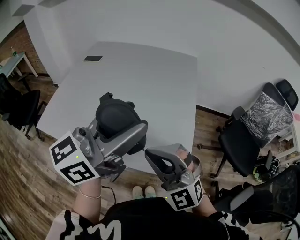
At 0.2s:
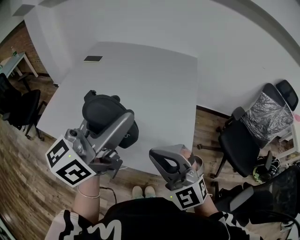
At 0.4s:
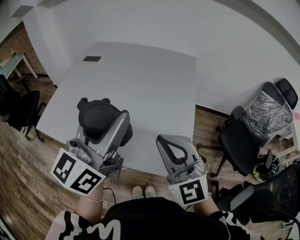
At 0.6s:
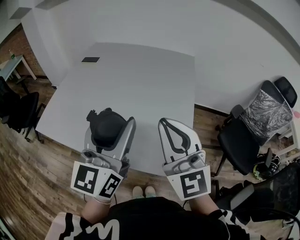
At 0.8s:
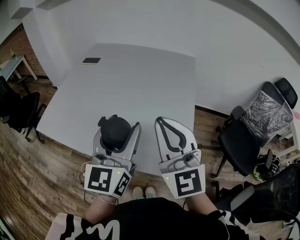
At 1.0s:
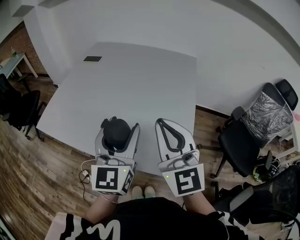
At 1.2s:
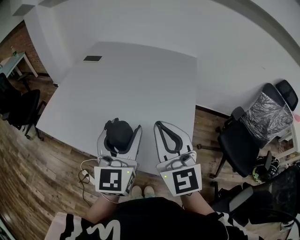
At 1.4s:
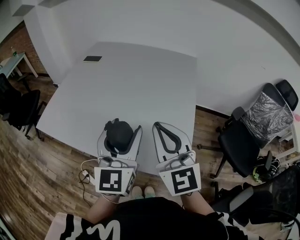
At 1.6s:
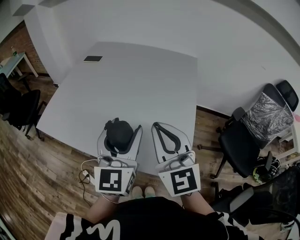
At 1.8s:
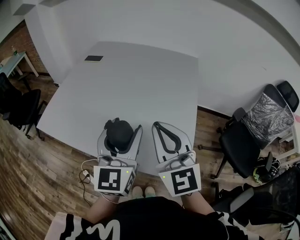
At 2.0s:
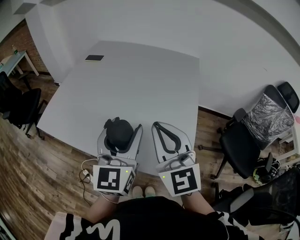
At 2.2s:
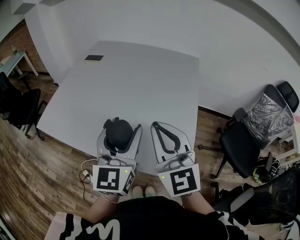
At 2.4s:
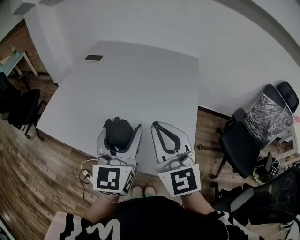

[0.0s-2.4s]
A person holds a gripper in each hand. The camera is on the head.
0.0s to 1.2s: The left gripper shifts approximately 10 cm downward, and swivels approximately 50 degrees, while the right gripper heads forward, covering about 5 cm, and rotates approximately 40 degrees.
1.2s to 2.4s: The grippers make only small movements.

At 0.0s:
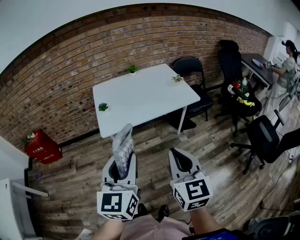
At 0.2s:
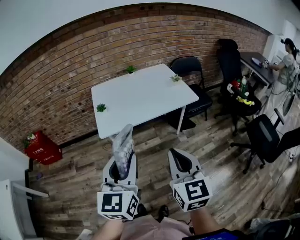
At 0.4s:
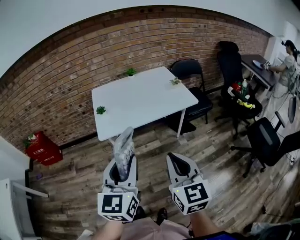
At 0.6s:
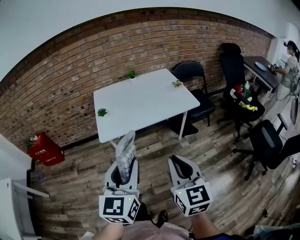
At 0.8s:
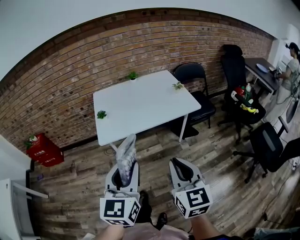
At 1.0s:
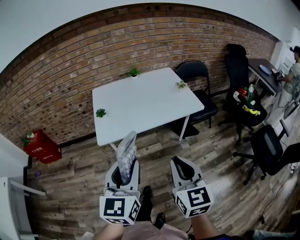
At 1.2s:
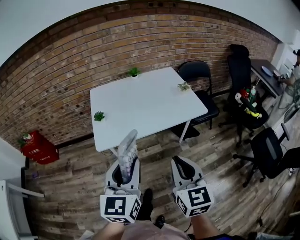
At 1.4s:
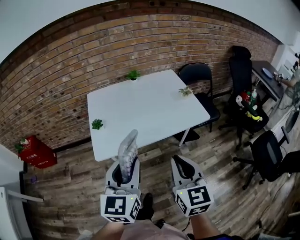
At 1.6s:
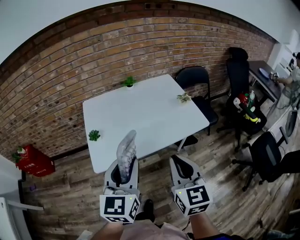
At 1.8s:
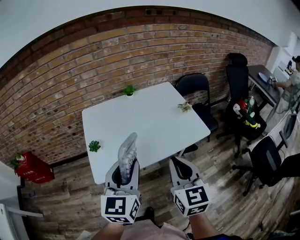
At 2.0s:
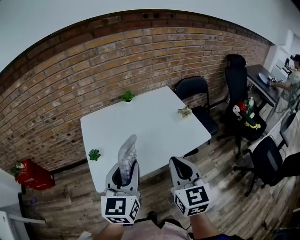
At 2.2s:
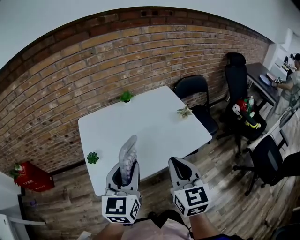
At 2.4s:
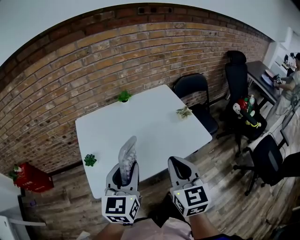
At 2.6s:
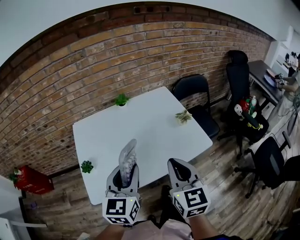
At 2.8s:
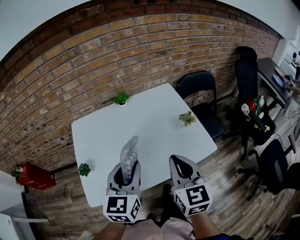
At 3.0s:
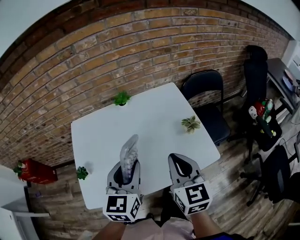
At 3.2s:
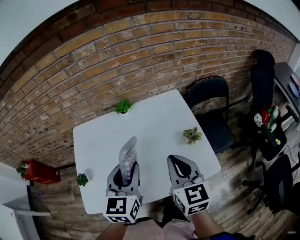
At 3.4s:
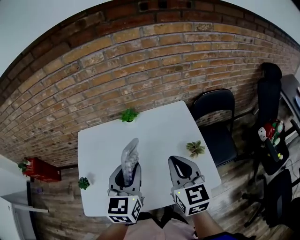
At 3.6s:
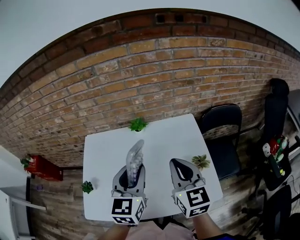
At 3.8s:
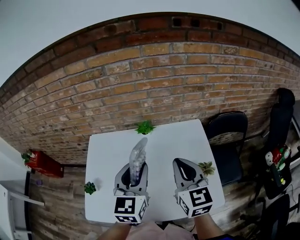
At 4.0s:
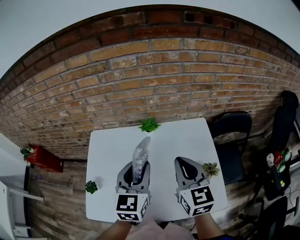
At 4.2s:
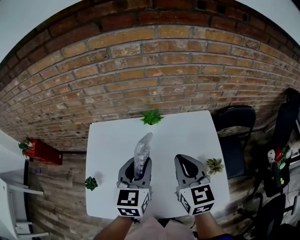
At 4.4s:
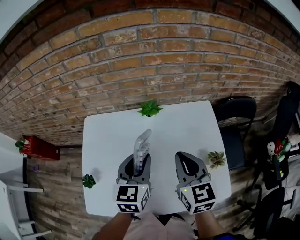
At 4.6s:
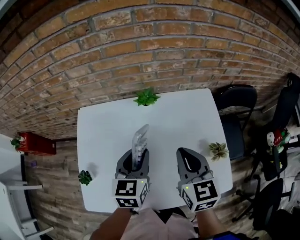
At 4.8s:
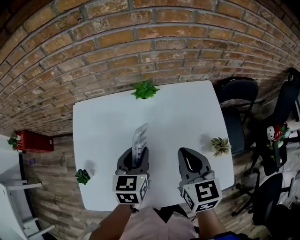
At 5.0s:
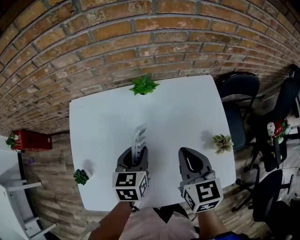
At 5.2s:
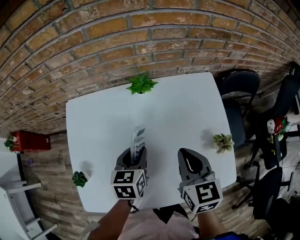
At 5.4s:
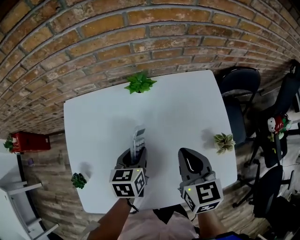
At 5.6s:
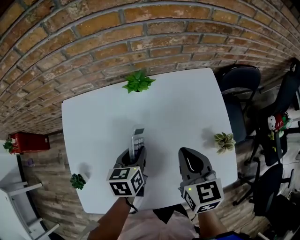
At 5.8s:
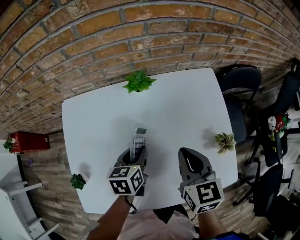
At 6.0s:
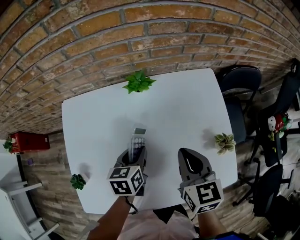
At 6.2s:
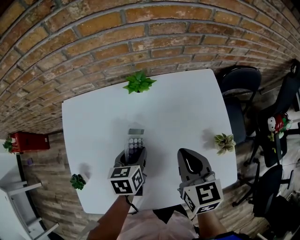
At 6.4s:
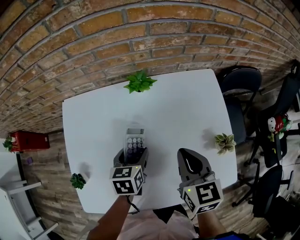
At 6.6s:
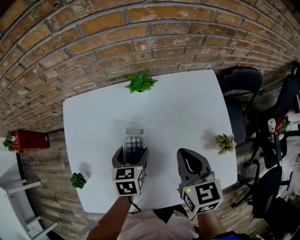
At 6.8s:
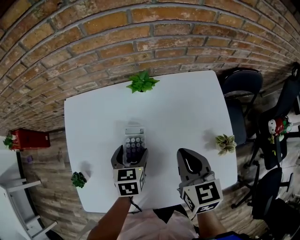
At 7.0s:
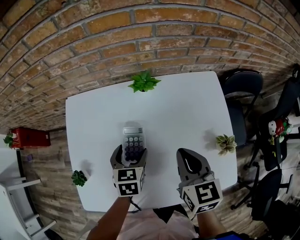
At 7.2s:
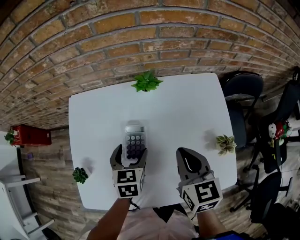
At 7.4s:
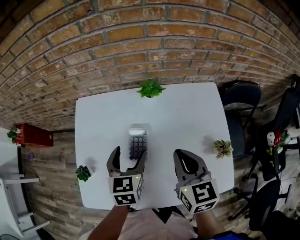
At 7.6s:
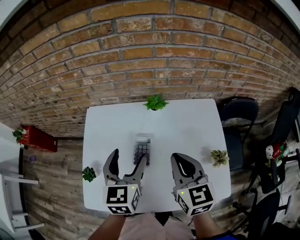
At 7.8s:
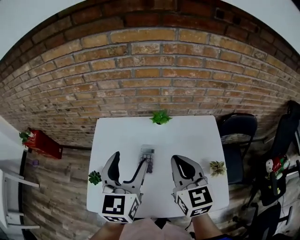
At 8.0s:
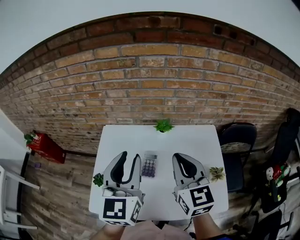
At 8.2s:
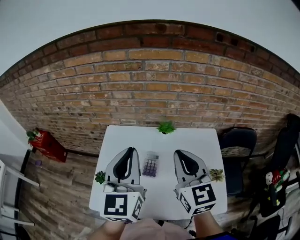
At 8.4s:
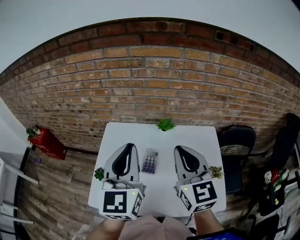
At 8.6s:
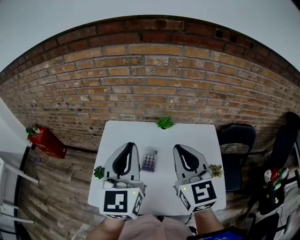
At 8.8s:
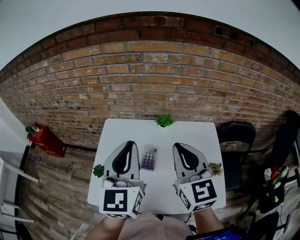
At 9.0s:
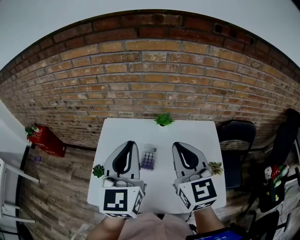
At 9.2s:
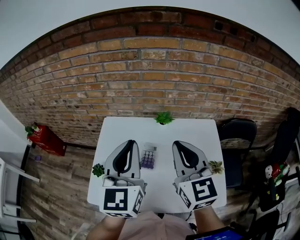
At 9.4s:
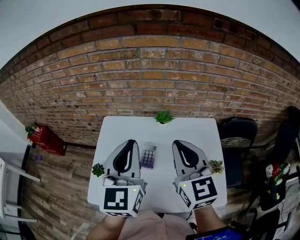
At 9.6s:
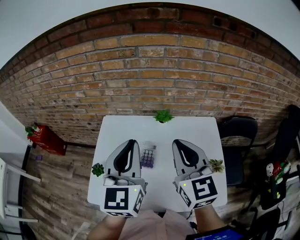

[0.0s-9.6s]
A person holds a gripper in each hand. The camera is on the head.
0.0s to 1.6s: Both grippers move forward, some 25 cm.
1.6s to 3.2s: The two grippers go some 30 cm forward.
3.2s to 4.8s: The left gripper heads downward and forward, covering some 15 cm. Meanwhile the right gripper moves forward, downward and to the left, some 15 cm.
4.8s to 6.4s: The left gripper travels downward by some 10 cm, and opens up.
6.4s to 8.0s: The right gripper goes approximately 20 cm upward, and rotates approximately 30 degrees. Meanwhile the left gripper goes some 35 cm upward, tips its fingers upward by some 40 degrees, and closes its fingers.
8.0s to 9.6s: The grippers move only a little.

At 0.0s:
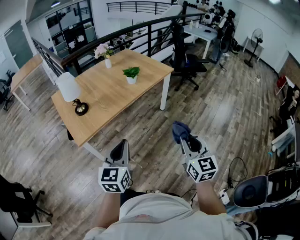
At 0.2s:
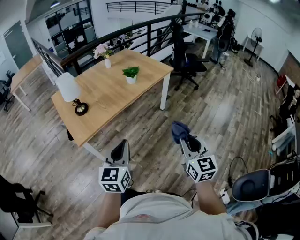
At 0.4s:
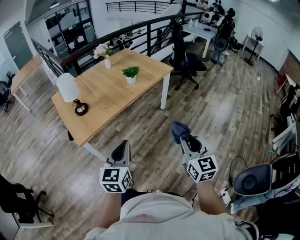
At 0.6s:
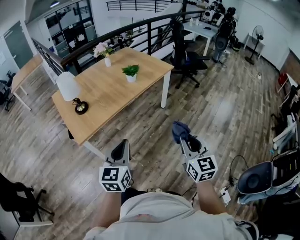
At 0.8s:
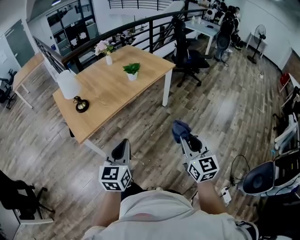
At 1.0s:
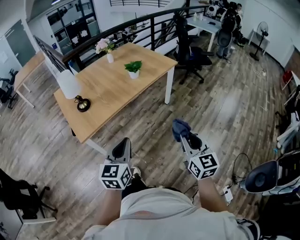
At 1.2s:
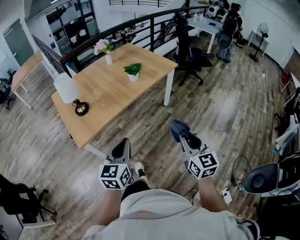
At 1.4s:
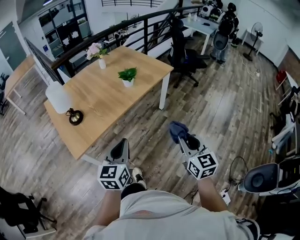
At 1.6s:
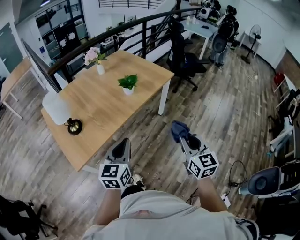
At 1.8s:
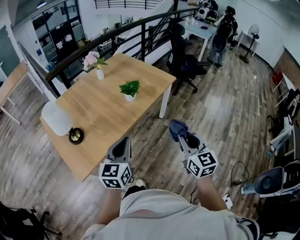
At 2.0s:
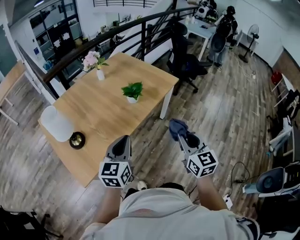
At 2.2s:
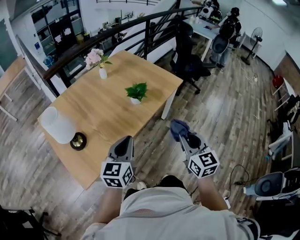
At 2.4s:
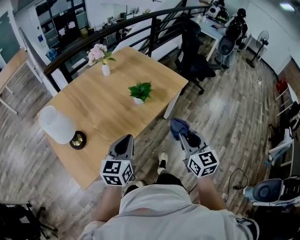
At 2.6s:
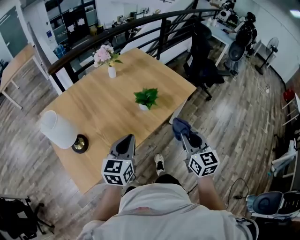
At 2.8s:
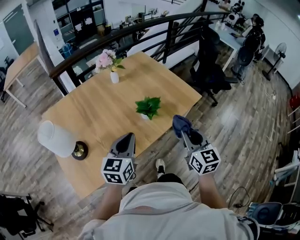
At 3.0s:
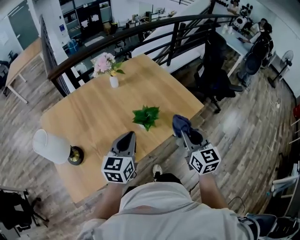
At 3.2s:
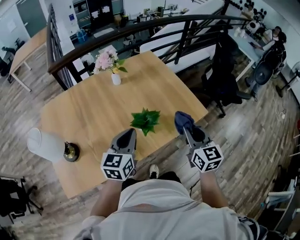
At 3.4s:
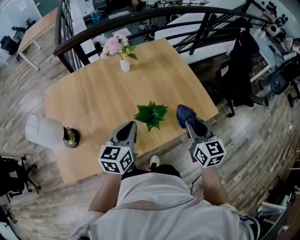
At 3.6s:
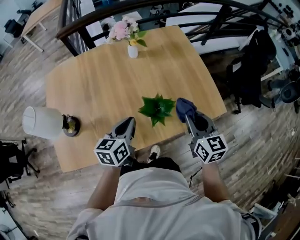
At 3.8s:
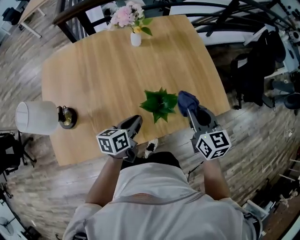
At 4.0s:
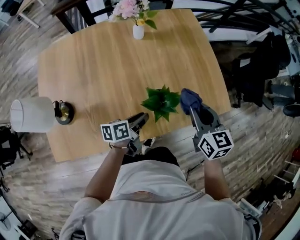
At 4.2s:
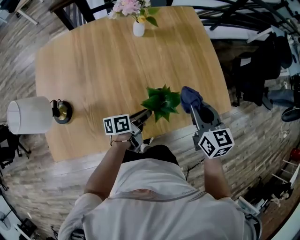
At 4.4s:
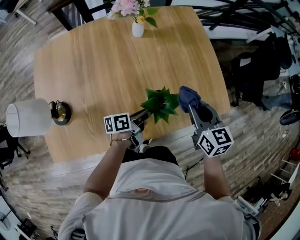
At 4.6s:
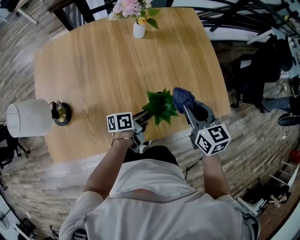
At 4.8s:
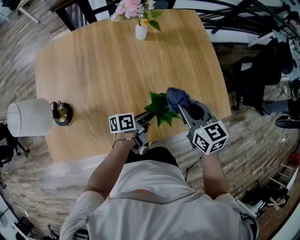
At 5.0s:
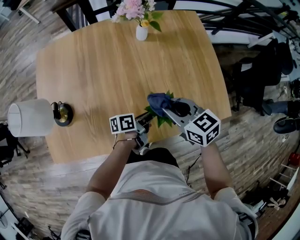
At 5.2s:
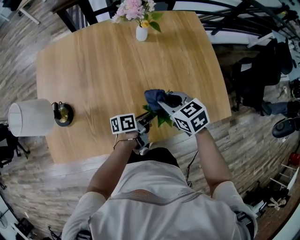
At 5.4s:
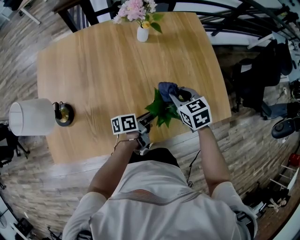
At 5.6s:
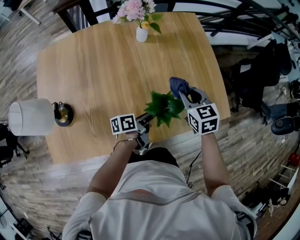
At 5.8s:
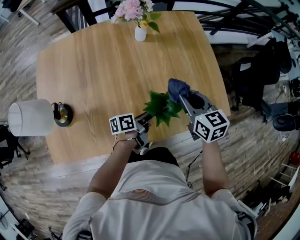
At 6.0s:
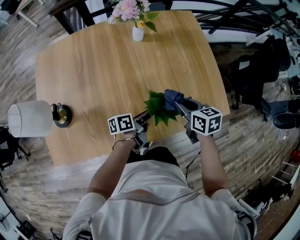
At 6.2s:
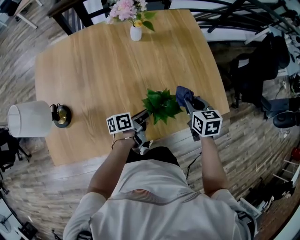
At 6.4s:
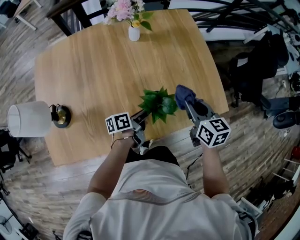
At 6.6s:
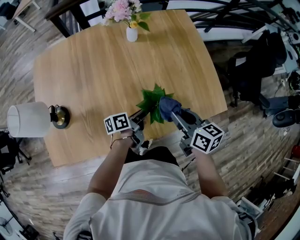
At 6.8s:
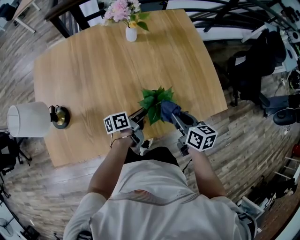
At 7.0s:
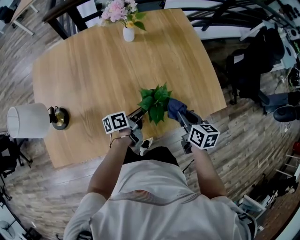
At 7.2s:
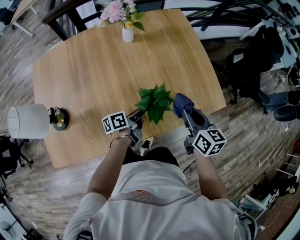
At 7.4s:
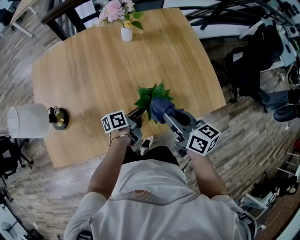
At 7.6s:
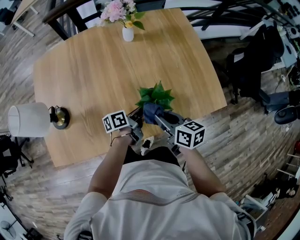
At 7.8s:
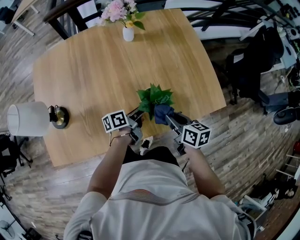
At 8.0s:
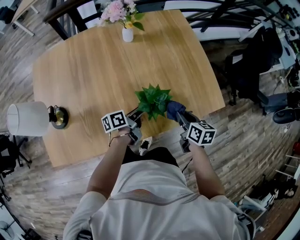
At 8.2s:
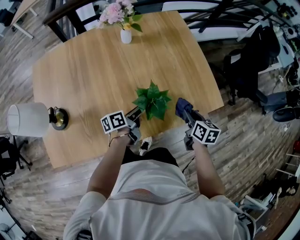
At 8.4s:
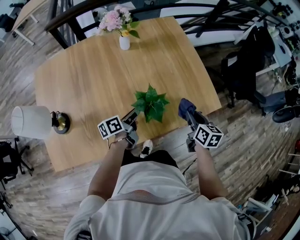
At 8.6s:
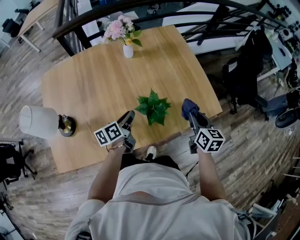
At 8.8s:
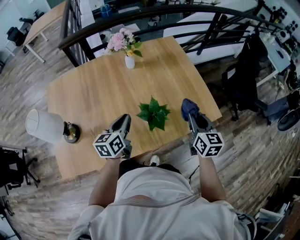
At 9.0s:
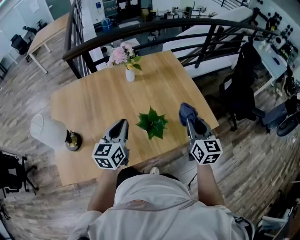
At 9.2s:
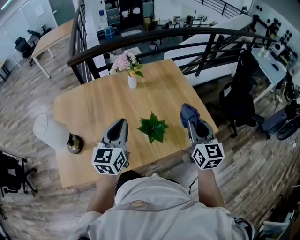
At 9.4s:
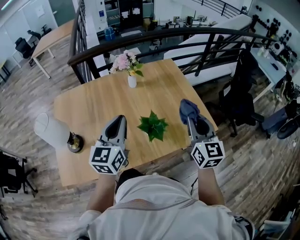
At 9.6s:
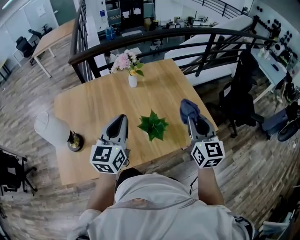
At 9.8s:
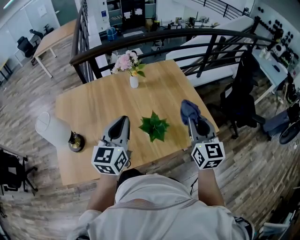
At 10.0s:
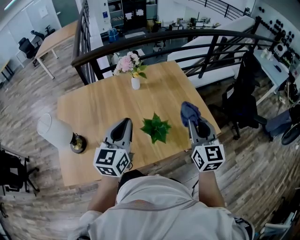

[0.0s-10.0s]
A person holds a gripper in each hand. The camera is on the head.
0.0s to 1.4s: Both grippers move forward, about 10 cm.
1.4s to 2.8s: Both grippers travel together forward, about 35 cm.
2.8s to 4.2s: The right gripper goes about 25 cm forward, and swivels about 30 degrees, while the left gripper goes some 30 cm downward and forward, and twists some 70 degrees counterclockwise, seen from behind.
4.2s to 5.8s: The right gripper heads to the left, covering about 5 cm.
5.8s to 7.2s: The right gripper goes about 10 cm to the right and backward, and rotates roughly 20 degrees.
7.2s to 8.6s: The right gripper shifts about 5 cm to the right. Meanwhile the left gripper is displaced to the left and upward by some 10 cm, and turns by some 20 degrees.
8.6s to 10.0s: The grippers both shift upward by about 20 cm. The right gripper rotates some 30 degrees. Meanwhile the left gripper rotates around the line of its fingers by some 50 degrees, clockwise from behind.

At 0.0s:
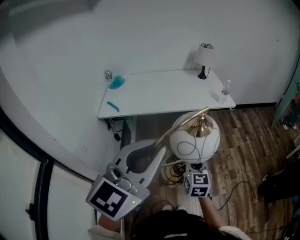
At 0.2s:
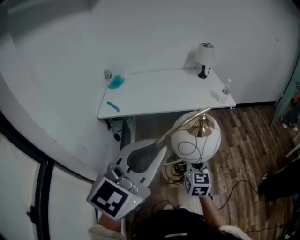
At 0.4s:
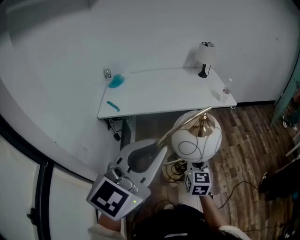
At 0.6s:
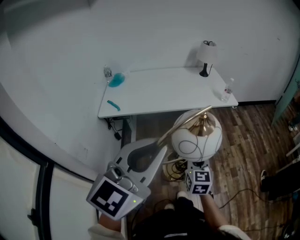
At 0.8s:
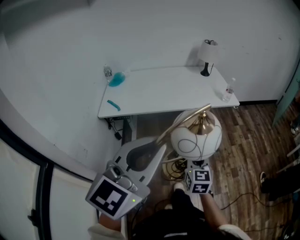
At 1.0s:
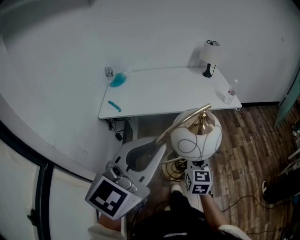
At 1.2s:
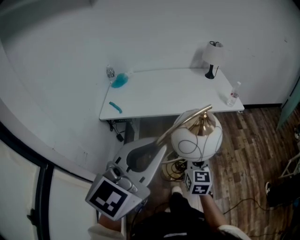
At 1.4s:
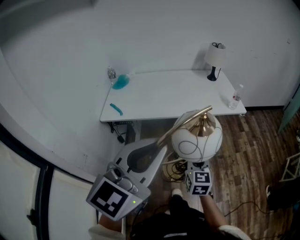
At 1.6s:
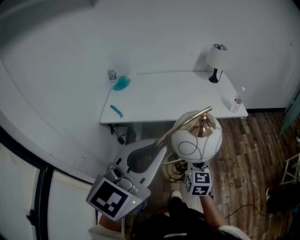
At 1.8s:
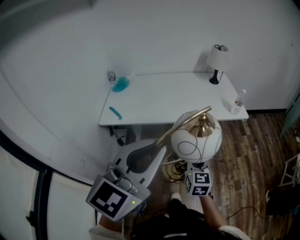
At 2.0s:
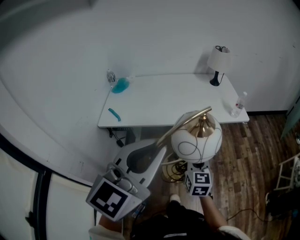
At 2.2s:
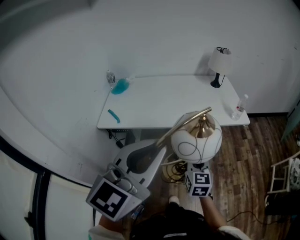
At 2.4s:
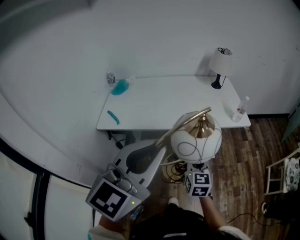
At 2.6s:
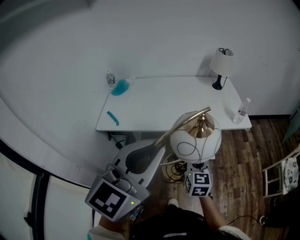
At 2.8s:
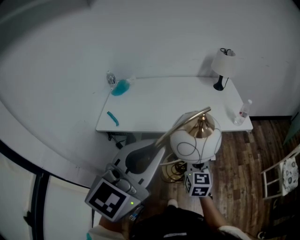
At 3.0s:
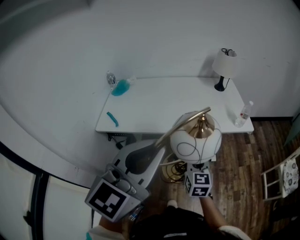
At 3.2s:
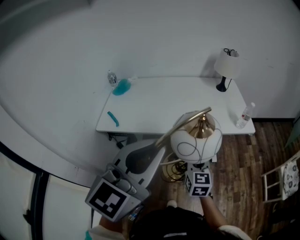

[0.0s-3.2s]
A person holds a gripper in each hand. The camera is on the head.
0.0s to 1.6s: Both grippers move forward, some 15 cm.
1.6s to 3.2s: Both grippers move forward, about 10 cm.
